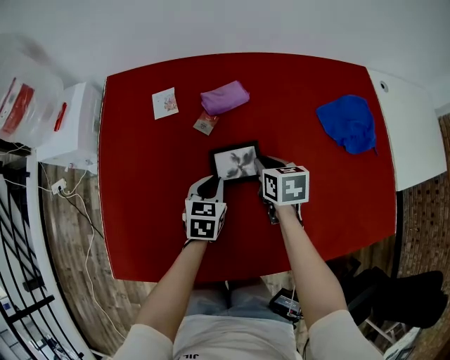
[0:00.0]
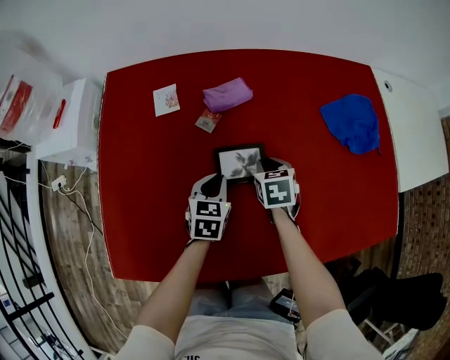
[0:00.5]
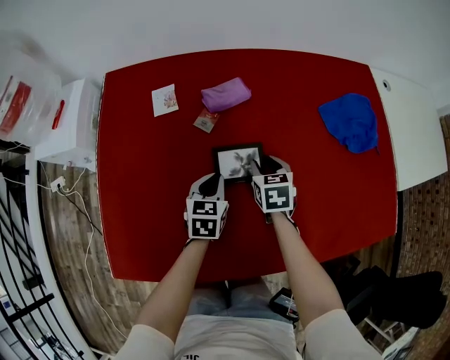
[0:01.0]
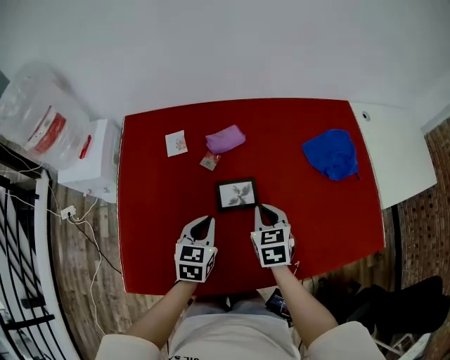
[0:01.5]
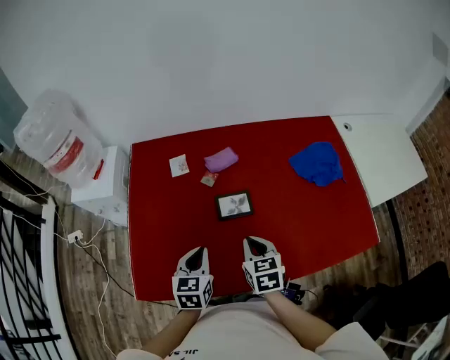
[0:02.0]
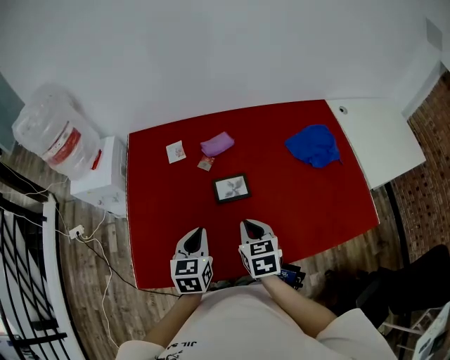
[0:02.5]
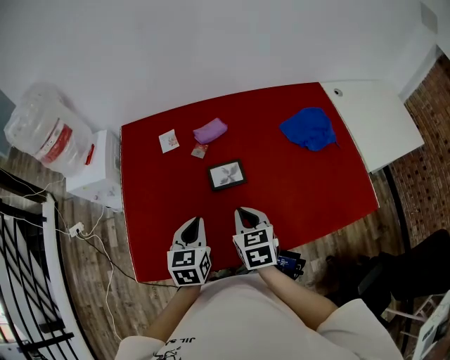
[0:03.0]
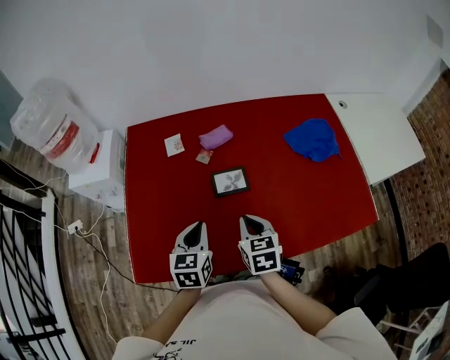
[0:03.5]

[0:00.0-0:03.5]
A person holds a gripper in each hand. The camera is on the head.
0:00.0 to 0:02.0: The right gripper moves backward and upward, roughly 25 cm. The left gripper heads upward and backward, covering about 25 cm.
0:02.0 to 0:03.5: The grippers stay close to where they were, moving slightly.

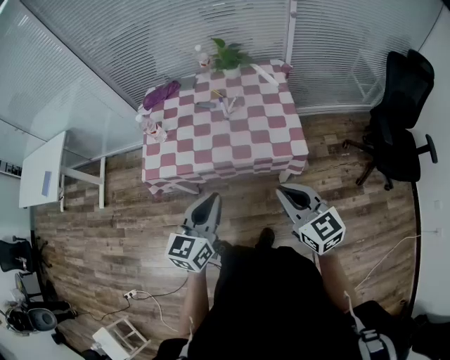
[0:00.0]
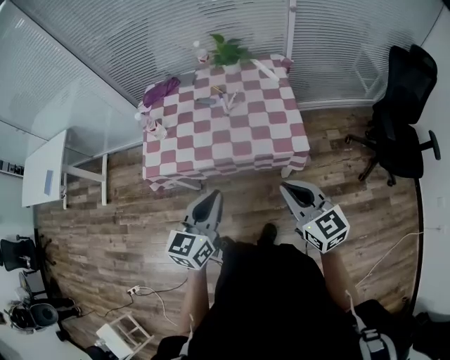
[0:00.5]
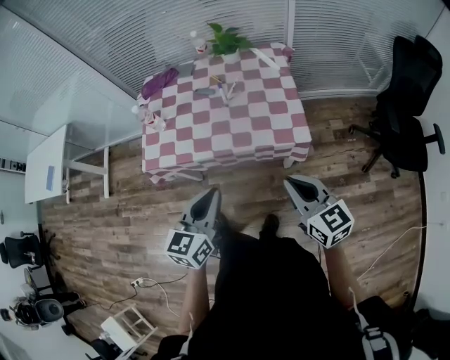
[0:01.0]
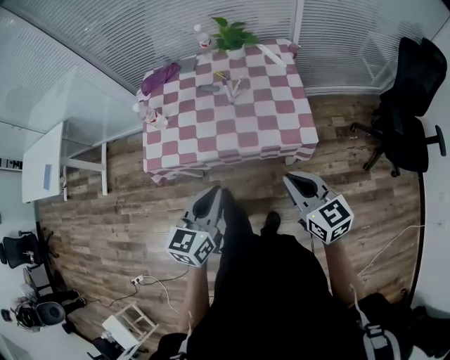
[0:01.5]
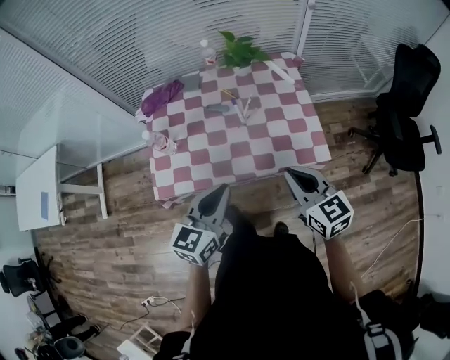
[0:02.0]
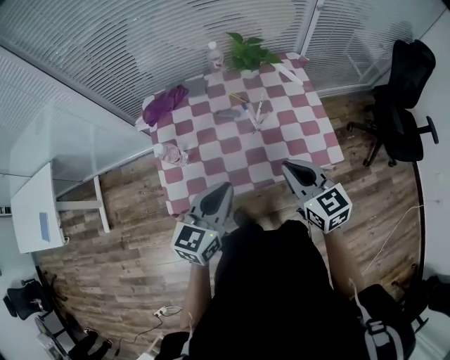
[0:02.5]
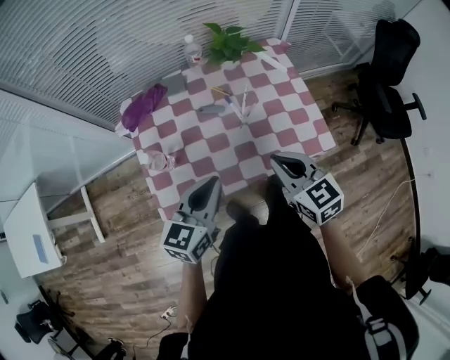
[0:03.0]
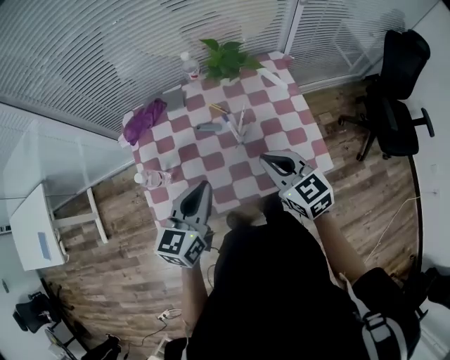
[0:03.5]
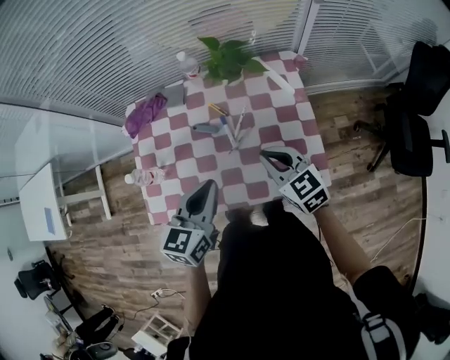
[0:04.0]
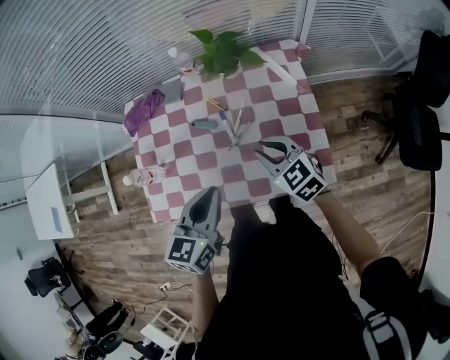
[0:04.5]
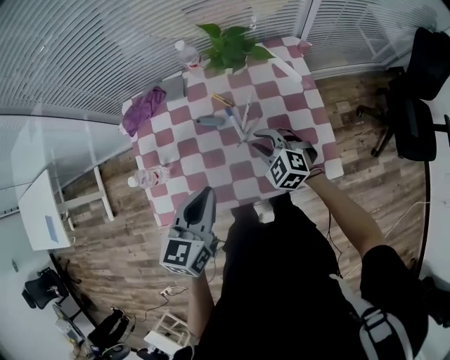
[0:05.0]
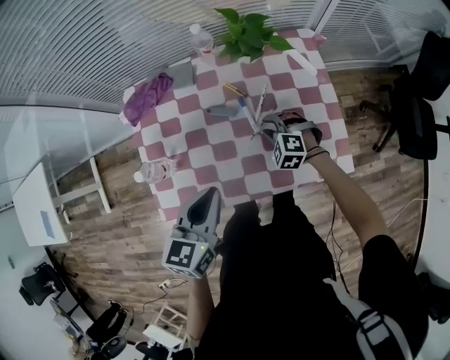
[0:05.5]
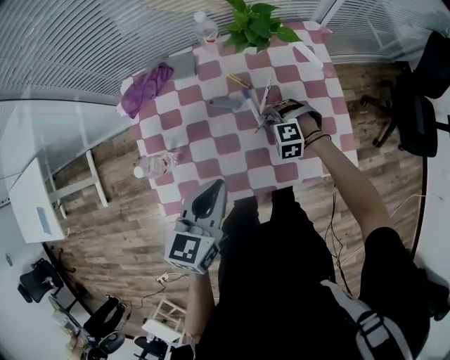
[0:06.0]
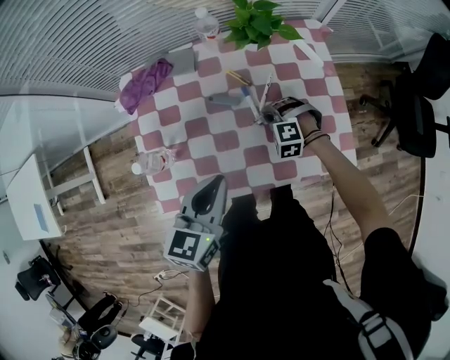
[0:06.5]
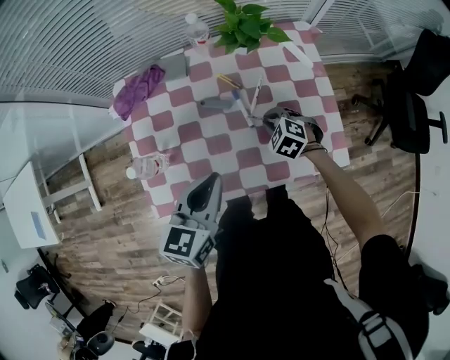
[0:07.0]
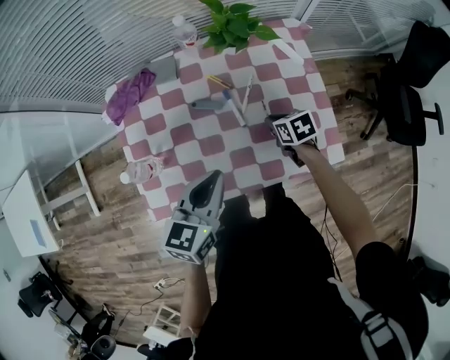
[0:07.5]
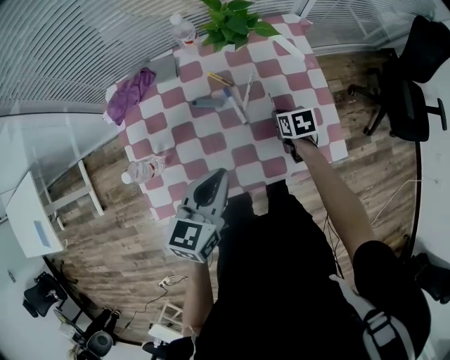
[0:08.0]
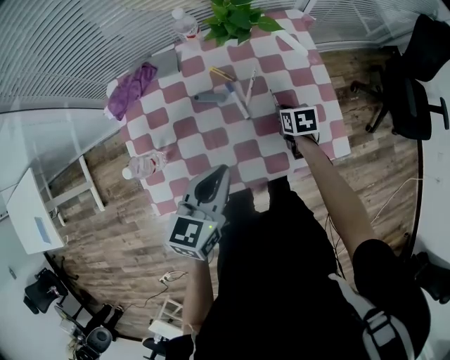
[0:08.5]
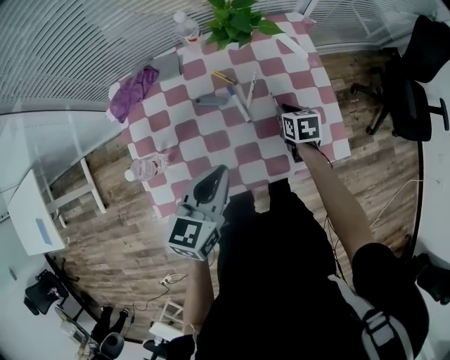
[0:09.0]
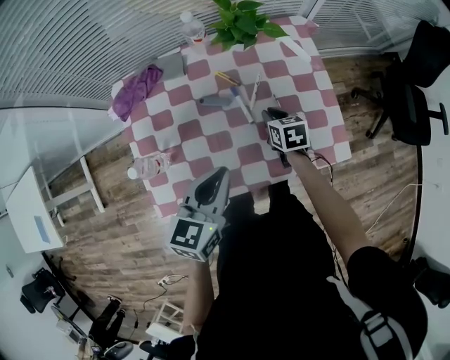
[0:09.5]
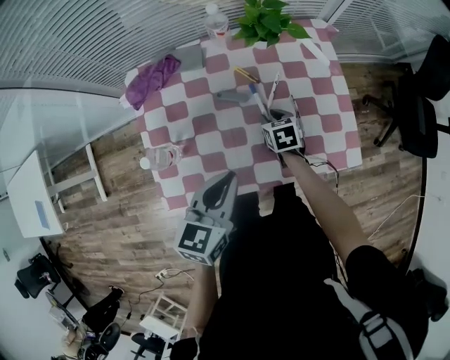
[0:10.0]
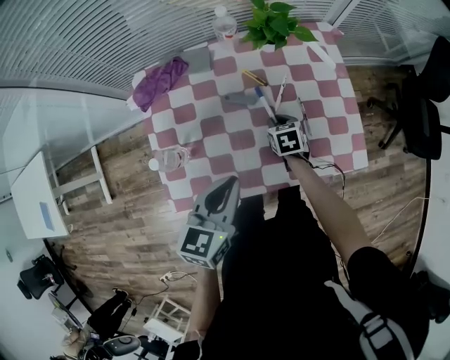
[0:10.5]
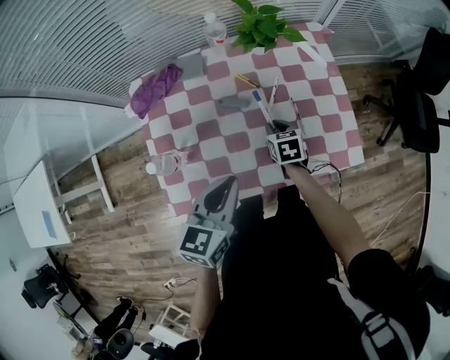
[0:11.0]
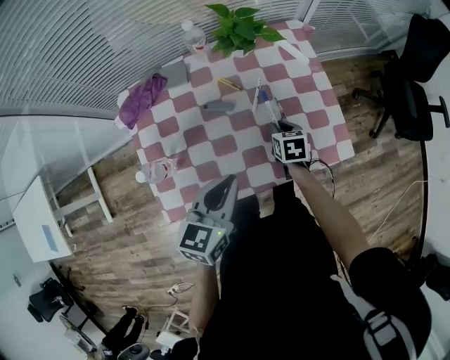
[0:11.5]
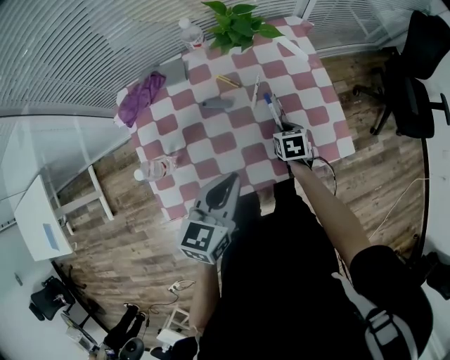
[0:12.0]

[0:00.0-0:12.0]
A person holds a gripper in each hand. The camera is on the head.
0:00.0 to 0:02.0: Both grippers move forward and to the left, roughly 15 cm.
0:02.0 to 0:04.0: The two grippers go about 20 cm forward.
0:04.0 to 0:06.0: The left gripper moves to the left, about 10 cm. Meanwhile the right gripper moves downward, approximately 25 cm, rotates around the line of its fingers by some 60 degrees, counterclockwise from behind, and opens up.
0:06.0 to 0:08.0: The right gripper travels to the right by about 10 cm, and rotates around the line of its fingers by some 90 degrees, clockwise from behind.
0:08.0 to 0:10.0: The right gripper goes approximately 10 cm to the left.
0:10.0 to 0:12.0: The right gripper is displaced to the right by approximately 10 cm.

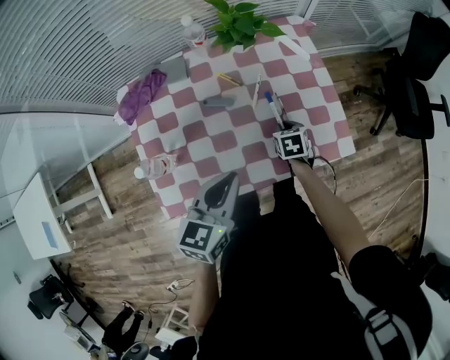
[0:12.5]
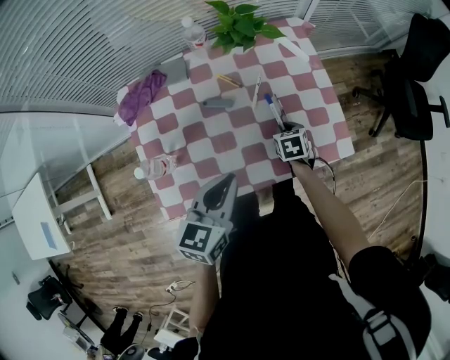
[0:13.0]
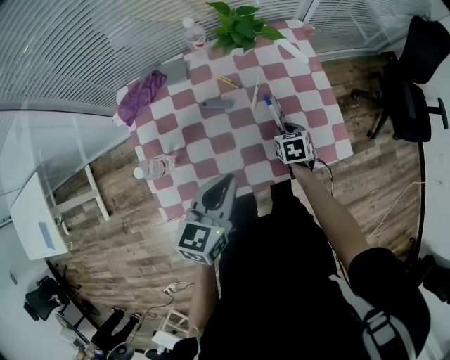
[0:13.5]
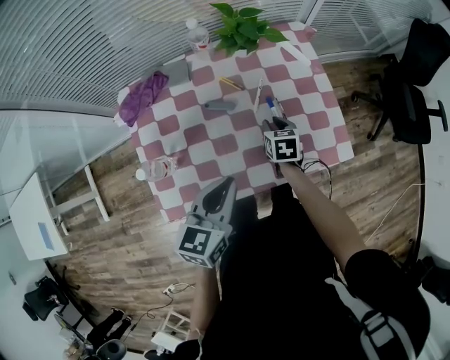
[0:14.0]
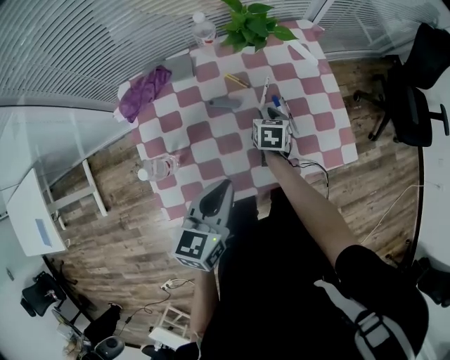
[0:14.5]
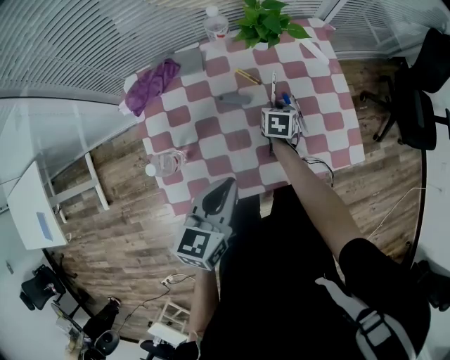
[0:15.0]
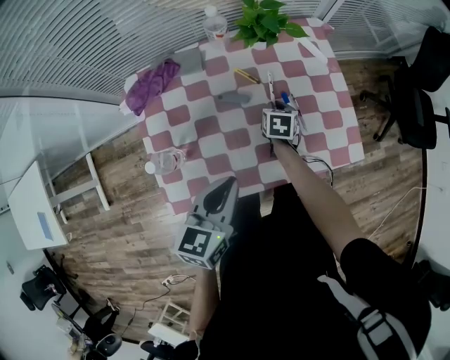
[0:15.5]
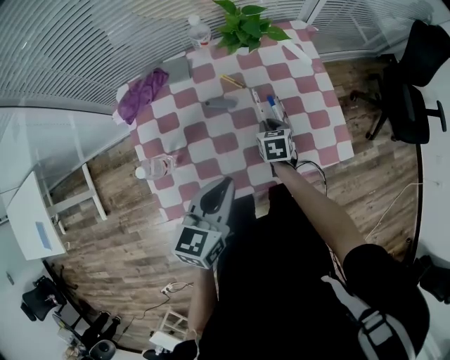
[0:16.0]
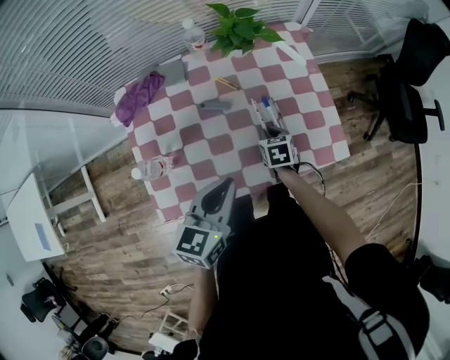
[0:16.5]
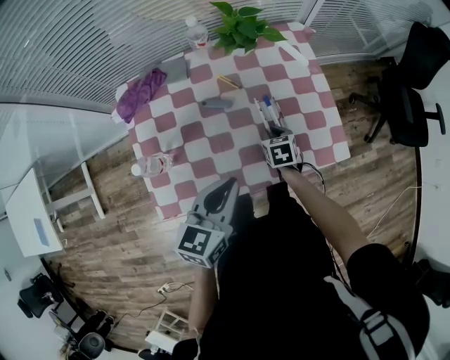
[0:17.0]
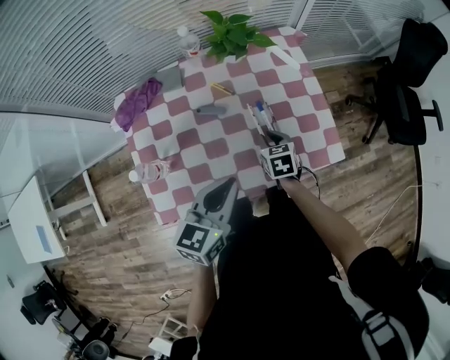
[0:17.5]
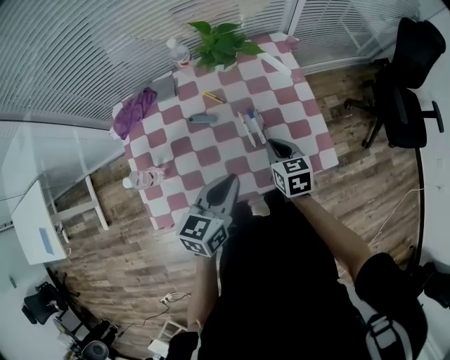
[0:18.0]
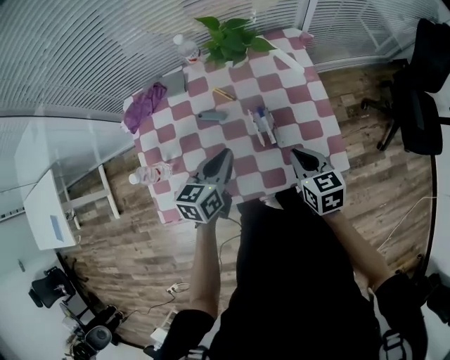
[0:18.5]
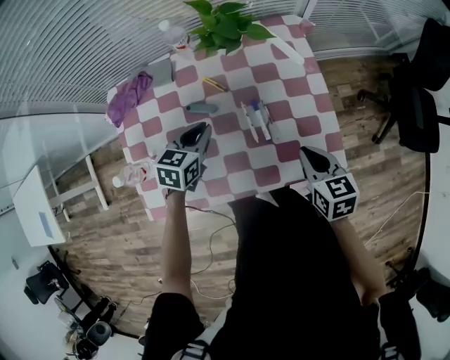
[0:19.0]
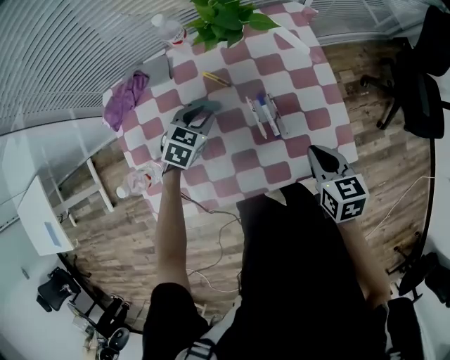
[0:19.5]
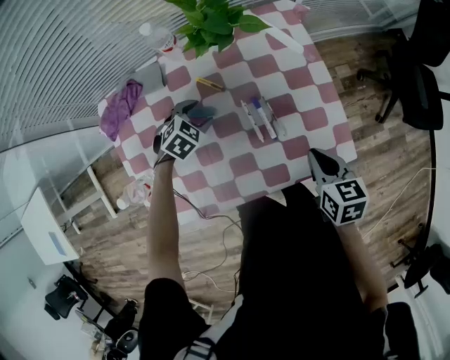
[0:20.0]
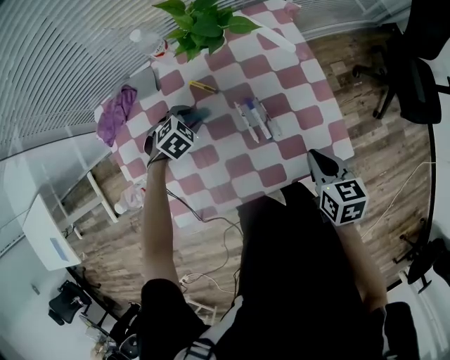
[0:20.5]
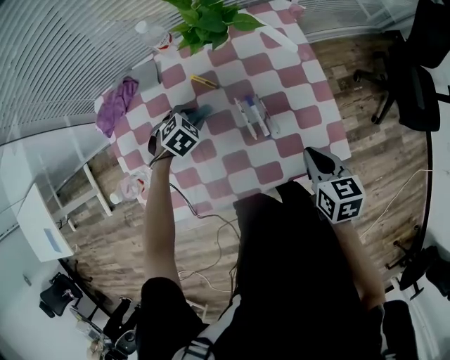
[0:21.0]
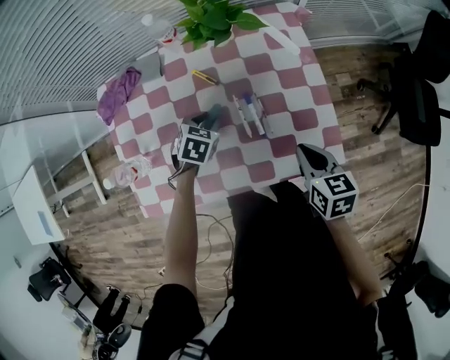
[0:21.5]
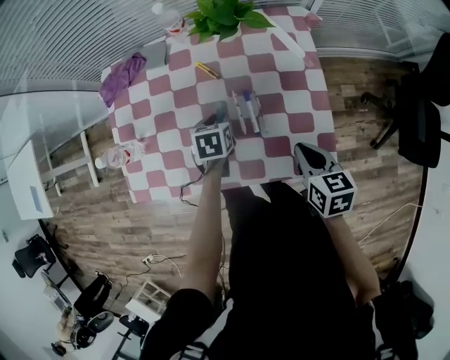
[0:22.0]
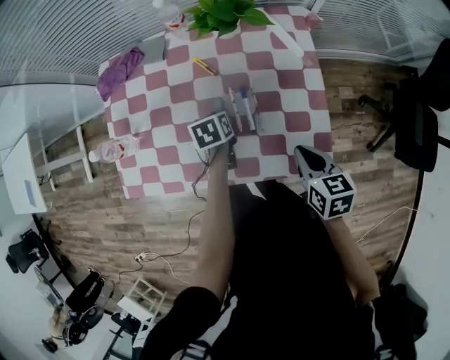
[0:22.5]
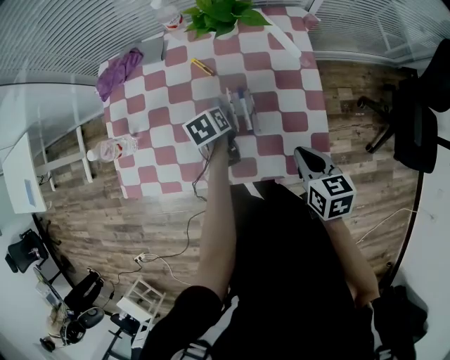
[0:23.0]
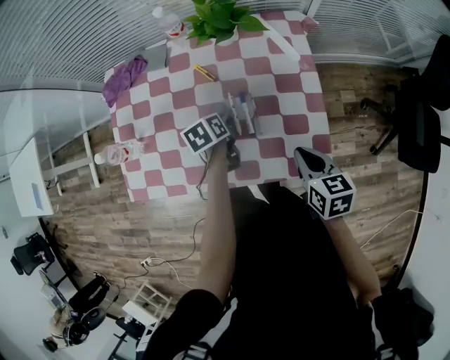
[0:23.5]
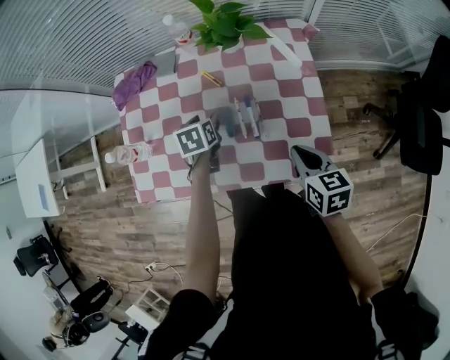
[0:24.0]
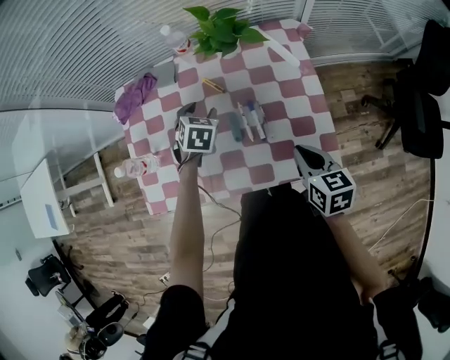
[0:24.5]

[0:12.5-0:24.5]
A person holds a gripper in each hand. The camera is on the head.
0:12.5 to 0:14.5: The right gripper moves to the left, some 10 cm.
0:14.5 to 0:16.5: The right gripper heads backward, covering some 5 cm.
0:16.5 to 0:18.5: The right gripper goes about 20 cm upward and to the right, and swivels some 20 degrees, while the left gripper moves forward and downward, about 10 cm.
0:18.5 to 0:20.5: The left gripper is displaced downward, forward and to the left by roughly 25 cm, tilts its fingers approximately 40 degrees downward, and opens its fingers. Meanwhile the right gripper changes place by about 5 cm.
0:20.5 to 0:22.5: The left gripper shifts by approximately 10 cm, and twists roughly 80 degrees counterclockwise, seen from behind.
0:22.5 to 0:24.5: The right gripper shifts by some 5 cm, while the left gripper shifts roughly 10 cm upward and forward, rolls clockwise, seen from behind, by roughly 50 degrees, and opens its fingers.
